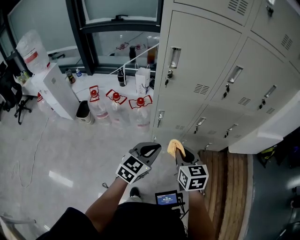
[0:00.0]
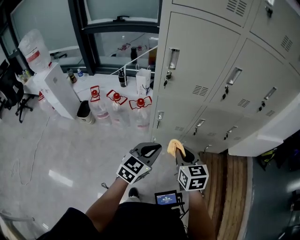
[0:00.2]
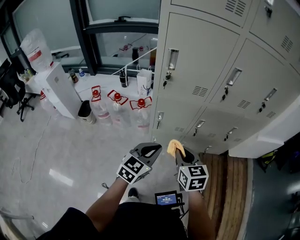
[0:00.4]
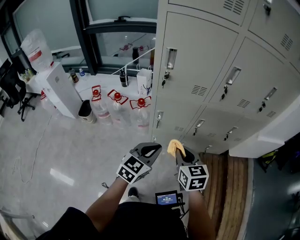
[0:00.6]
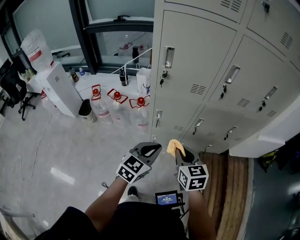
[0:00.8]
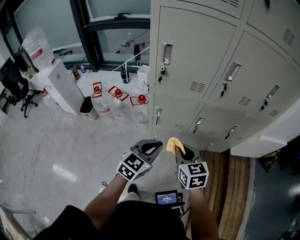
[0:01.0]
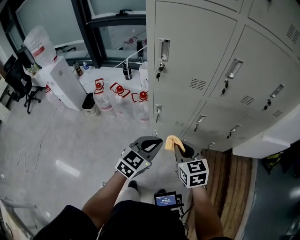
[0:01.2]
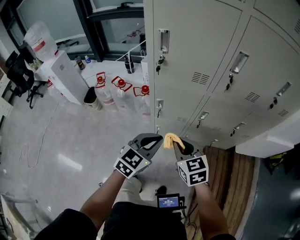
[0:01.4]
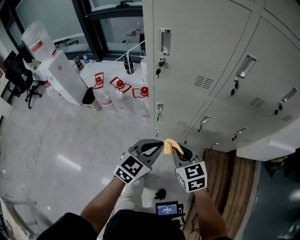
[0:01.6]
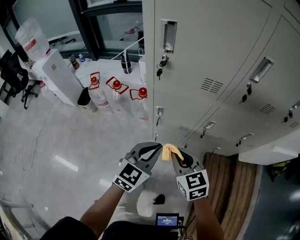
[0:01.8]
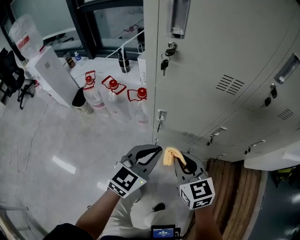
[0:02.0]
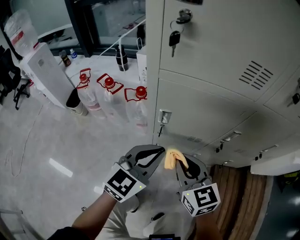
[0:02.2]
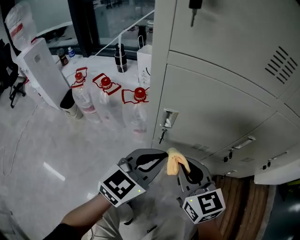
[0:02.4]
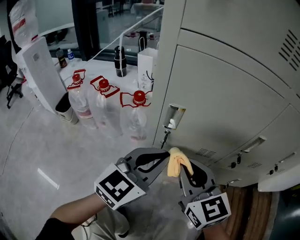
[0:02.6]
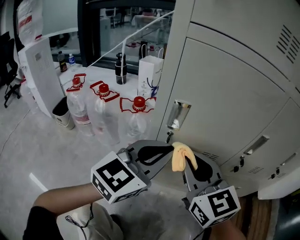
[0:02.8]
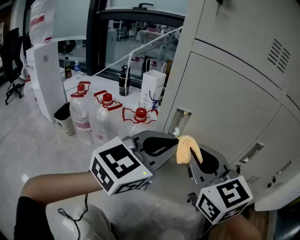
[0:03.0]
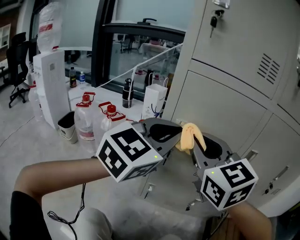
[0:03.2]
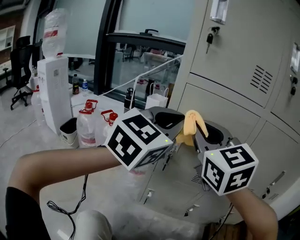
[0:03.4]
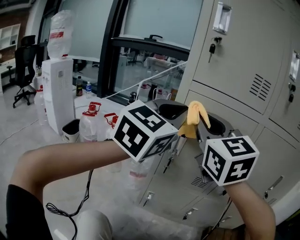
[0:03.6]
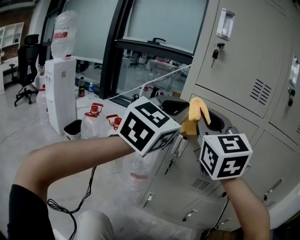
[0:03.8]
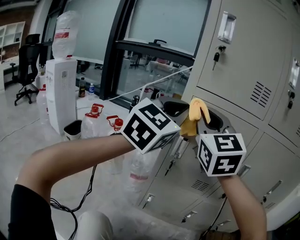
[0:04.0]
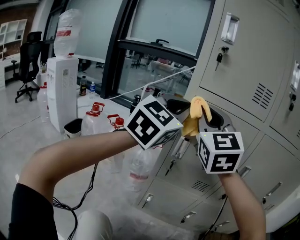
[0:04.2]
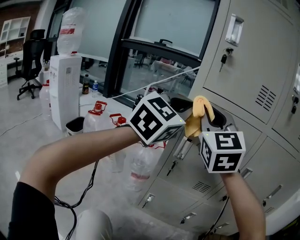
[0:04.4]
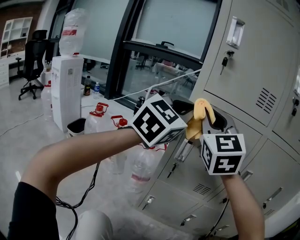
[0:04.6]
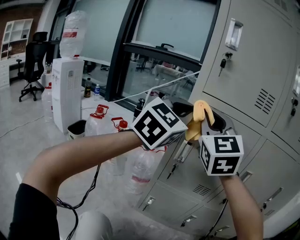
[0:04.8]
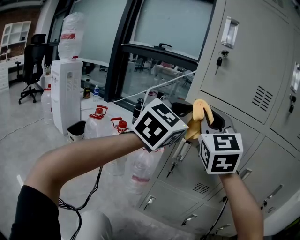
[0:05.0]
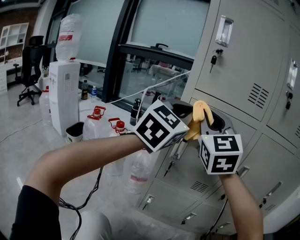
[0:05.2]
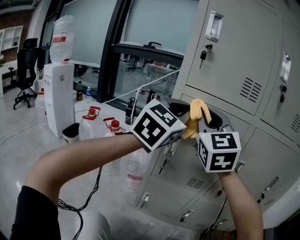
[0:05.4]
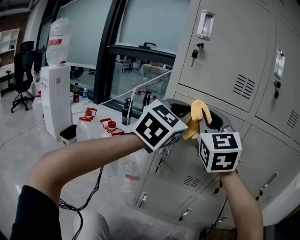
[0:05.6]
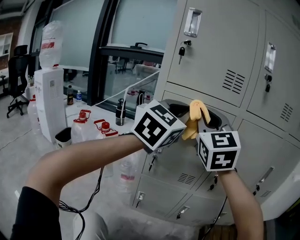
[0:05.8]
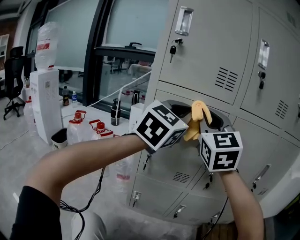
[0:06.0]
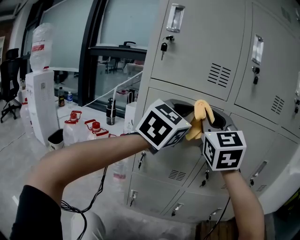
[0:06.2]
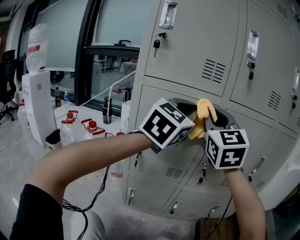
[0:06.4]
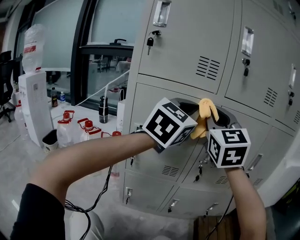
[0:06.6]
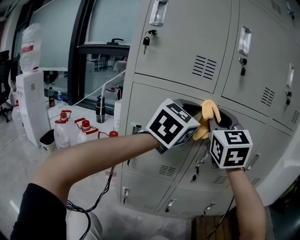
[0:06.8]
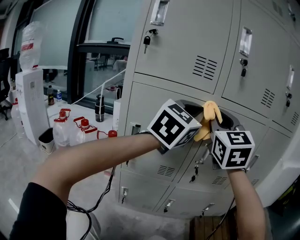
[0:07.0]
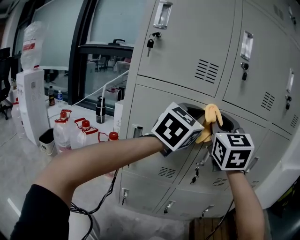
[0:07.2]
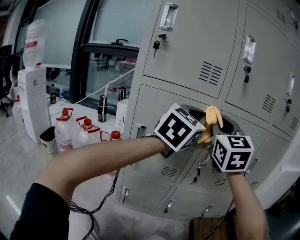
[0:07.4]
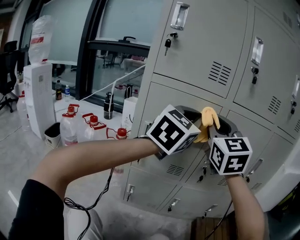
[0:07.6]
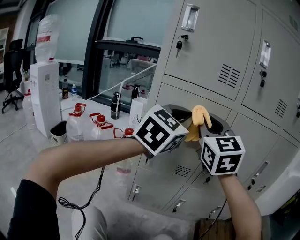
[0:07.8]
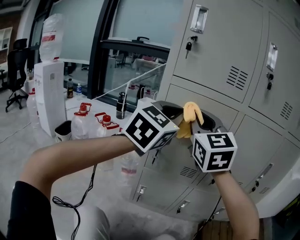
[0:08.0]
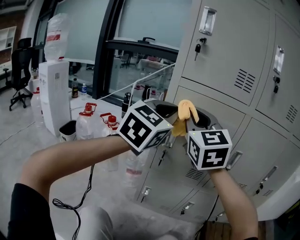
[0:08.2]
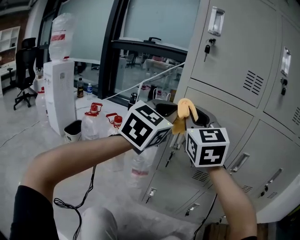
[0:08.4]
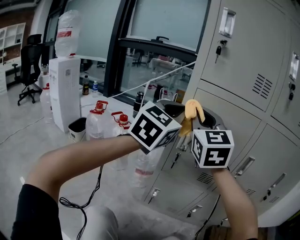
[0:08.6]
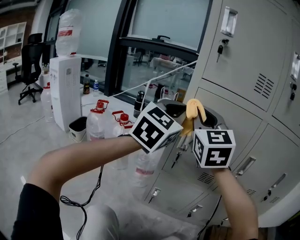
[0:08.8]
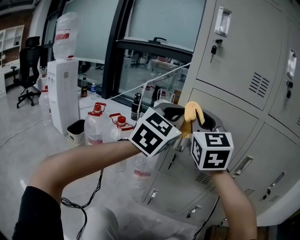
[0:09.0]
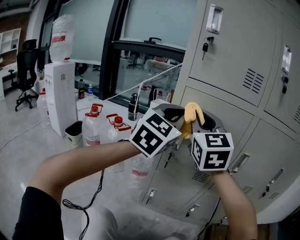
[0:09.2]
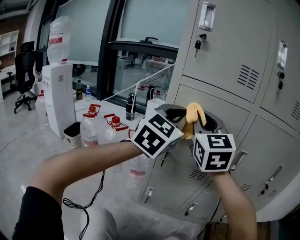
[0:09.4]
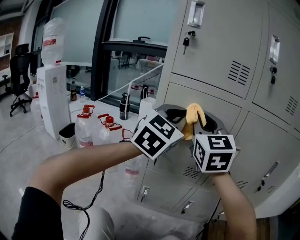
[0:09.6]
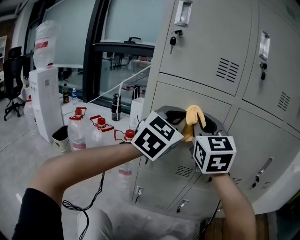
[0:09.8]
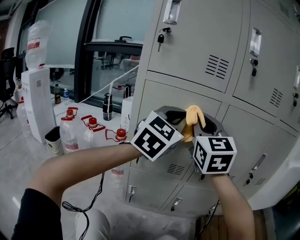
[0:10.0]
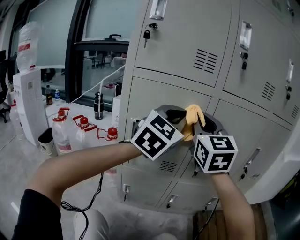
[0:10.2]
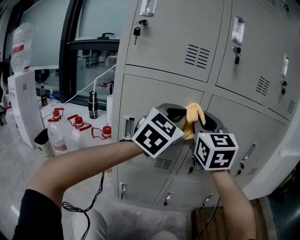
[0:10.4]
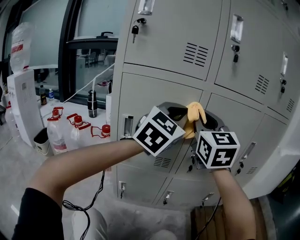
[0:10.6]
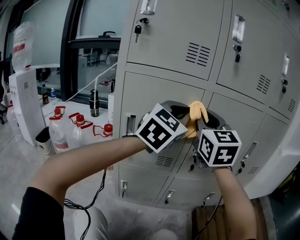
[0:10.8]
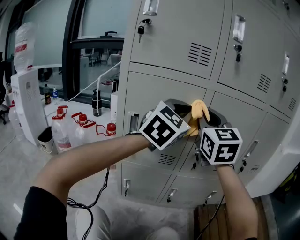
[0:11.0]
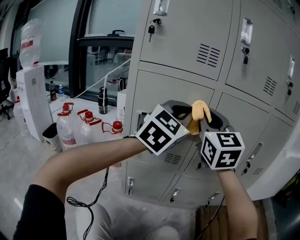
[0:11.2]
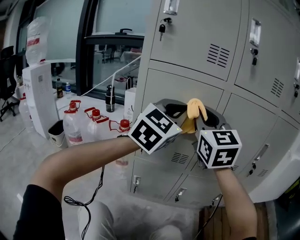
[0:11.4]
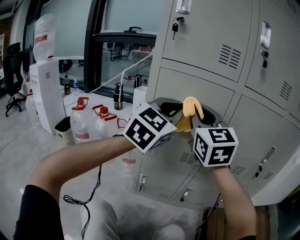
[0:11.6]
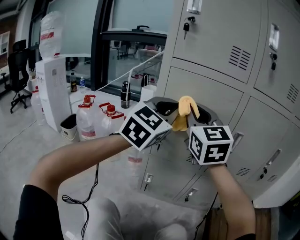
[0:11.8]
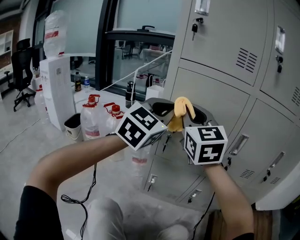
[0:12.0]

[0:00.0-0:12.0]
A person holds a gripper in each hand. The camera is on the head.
0:00.0 to 0:01.6: The left gripper goes about 10 cm to the right and forward. Meanwhile the right gripper heads forward and downward, covering roughly 10 cm, and turns by some 20 degrees.
0:01.6 to 0:03.0: The right gripper moves downward, forward and to the left, some 30 cm, and swivels approximately 20 degrees, while the left gripper heads downward and forward, covering some 30 cm.
0:03.0 to 0:04.4: The two grippers go roughly 20 cm upward. The left gripper rotates about 20 degrees; the right gripper rotates about 30 degrees.
0:04.4 to 0:06.0: Both grippers move to the right, approximately 15 cm.
0:06.0 to 0:07.6: The two grippers go roughly 5 cm to the right.
0:07.6 to 0:09.0: The two grippers go about 20 cm to the left.
0:09.0 to 0:10.4: The two grippers go roughly 20 cm to the right.
0:10.4 to 0:12.0: Both grippers travel together to the left, approximately 20 cm.

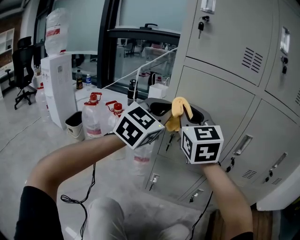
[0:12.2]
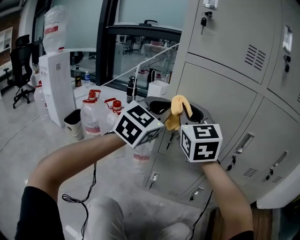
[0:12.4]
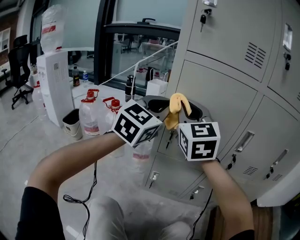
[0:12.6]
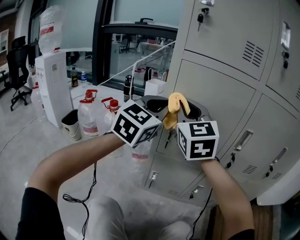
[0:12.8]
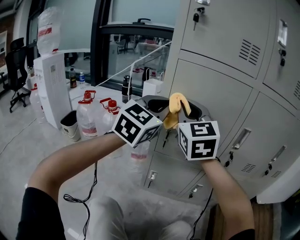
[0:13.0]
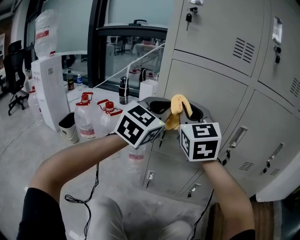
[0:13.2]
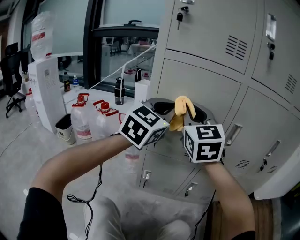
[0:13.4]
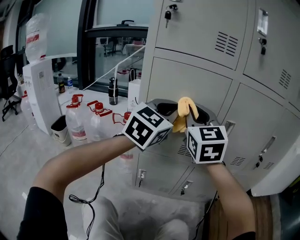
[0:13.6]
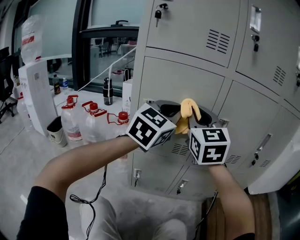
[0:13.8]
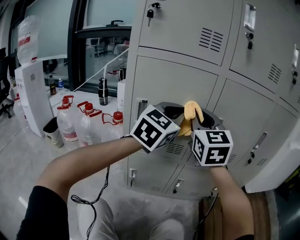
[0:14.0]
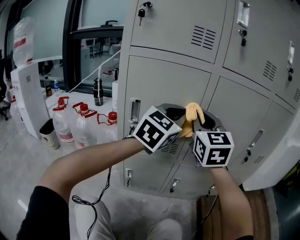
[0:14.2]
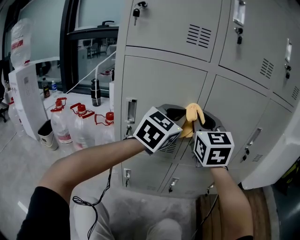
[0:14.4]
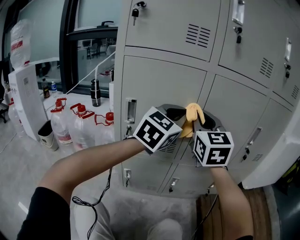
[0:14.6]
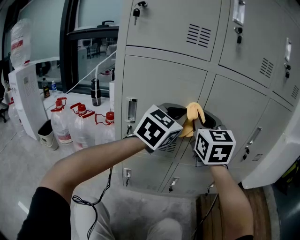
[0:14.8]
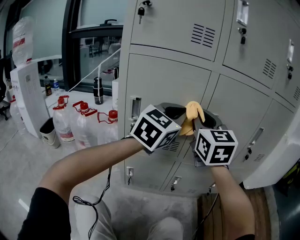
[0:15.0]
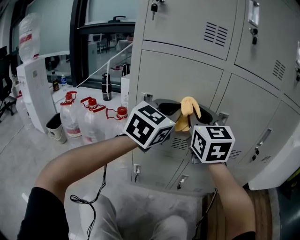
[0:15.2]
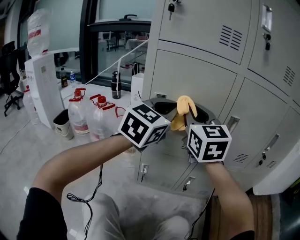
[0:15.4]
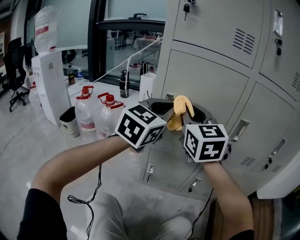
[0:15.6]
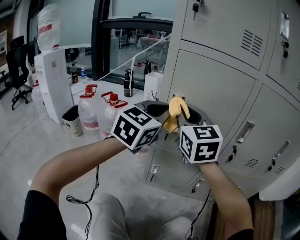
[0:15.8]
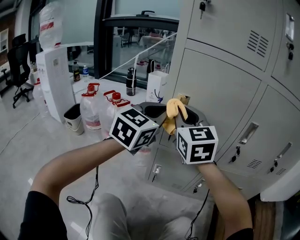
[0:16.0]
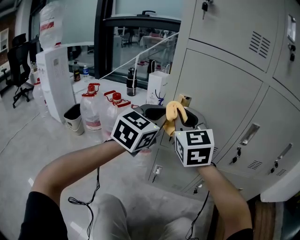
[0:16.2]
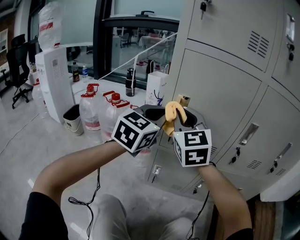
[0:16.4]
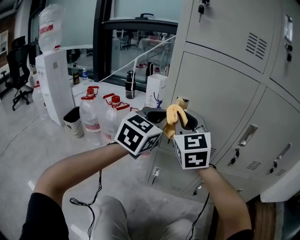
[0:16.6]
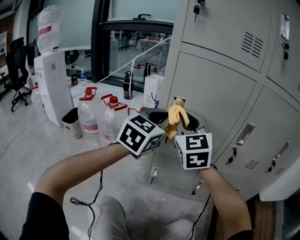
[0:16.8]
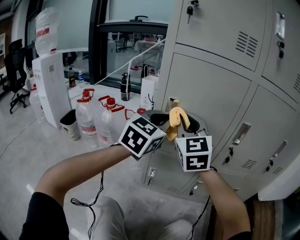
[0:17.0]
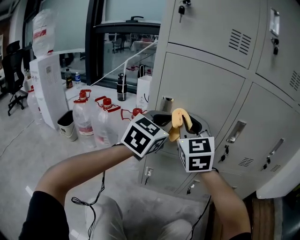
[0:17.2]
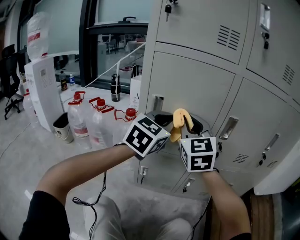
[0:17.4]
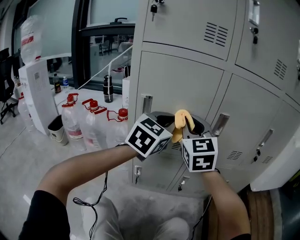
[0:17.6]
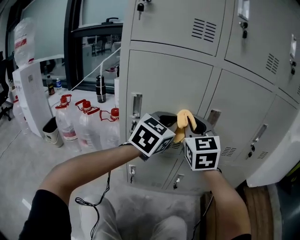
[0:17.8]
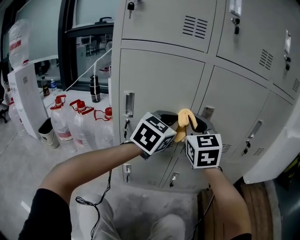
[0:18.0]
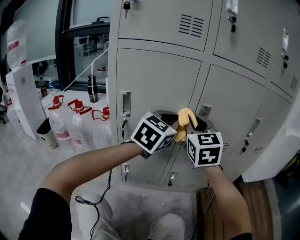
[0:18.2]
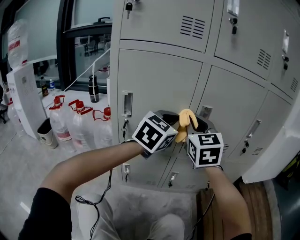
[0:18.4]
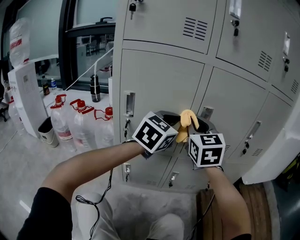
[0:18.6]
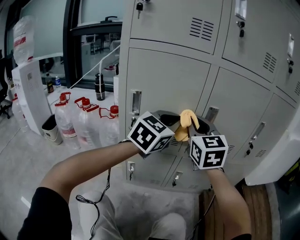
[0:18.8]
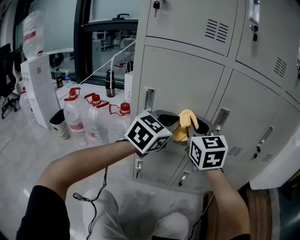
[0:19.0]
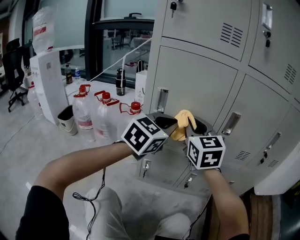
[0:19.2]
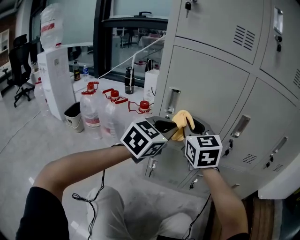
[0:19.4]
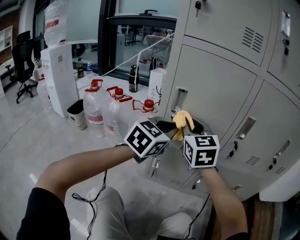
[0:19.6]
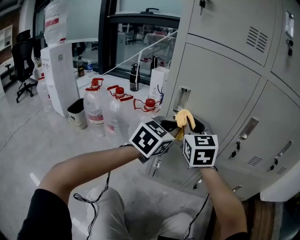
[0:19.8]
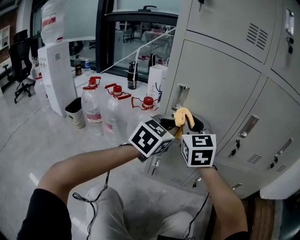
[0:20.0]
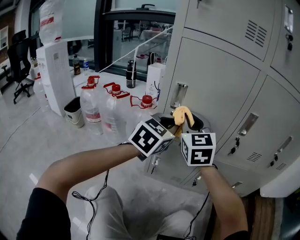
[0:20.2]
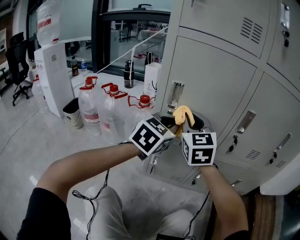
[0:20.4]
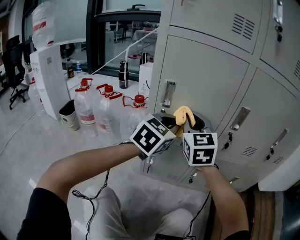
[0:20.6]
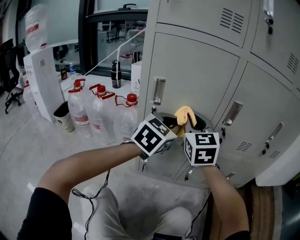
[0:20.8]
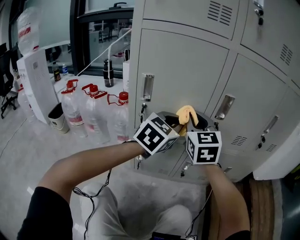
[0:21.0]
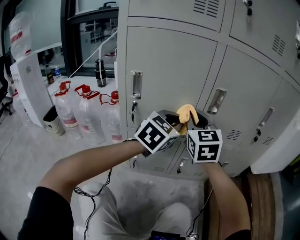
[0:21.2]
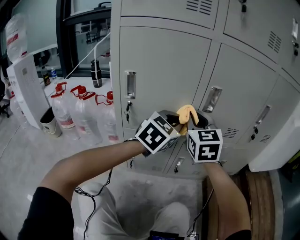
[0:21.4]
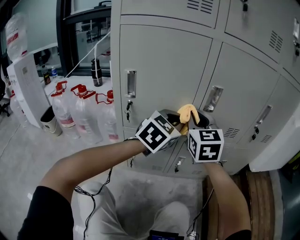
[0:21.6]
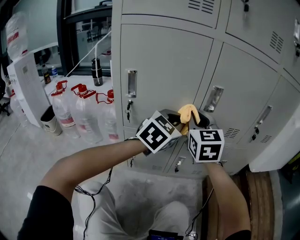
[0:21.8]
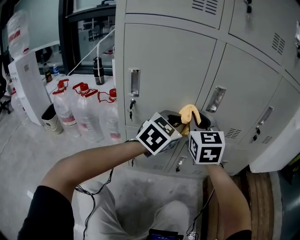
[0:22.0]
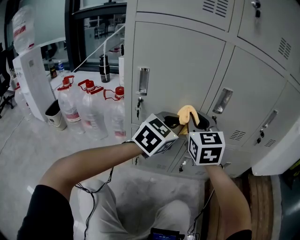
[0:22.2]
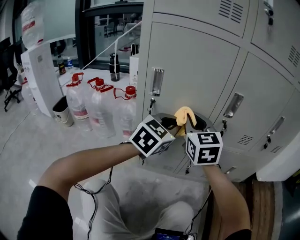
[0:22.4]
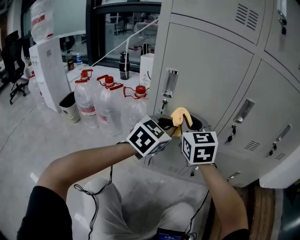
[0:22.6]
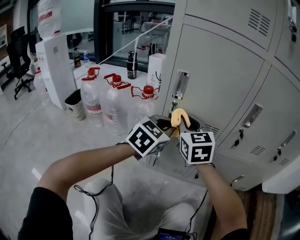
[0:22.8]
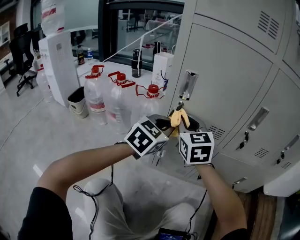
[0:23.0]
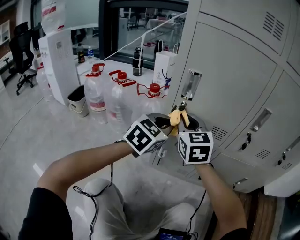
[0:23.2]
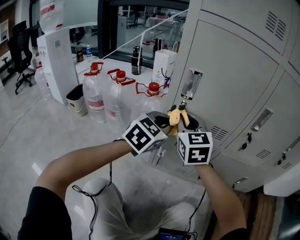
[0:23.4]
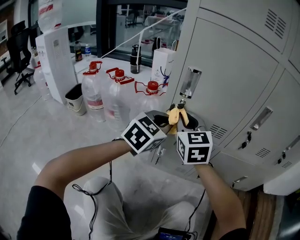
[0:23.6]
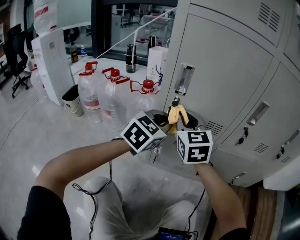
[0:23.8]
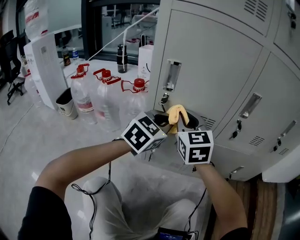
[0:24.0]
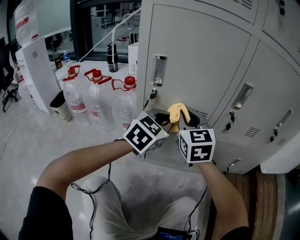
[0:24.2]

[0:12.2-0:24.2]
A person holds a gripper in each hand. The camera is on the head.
0:12.2 to 0:13.8: Both grippers move to the right, about 15 cm.
0:13.8 to 0:15.2: The left gripper moves roughly 10 cm to the right and comes back; the right gripper goes to the right and returns, roughly 10 cm each way.
0:15.2 to 0:16.6: The grippers both shift to the left by roughly 15 cm.
0:16.6 to 0:18.2: The two grippers go approximately 25 cm to the right.
0:18.2 to 0:19.8: The grippers both shift to the left by some 20 cm.
0:19.8 to 0:21.2: The grippers both shift to the right by about 15 cm.
0:21.2 to 0:22.6: The two grippers go approximately 10 cm to the left.
0:22.6 to 0:24.2: The left gripper reaches roughly 10 cm to the left, then returns. The right gripper moves roughly 10 cm to the left and comes back.
